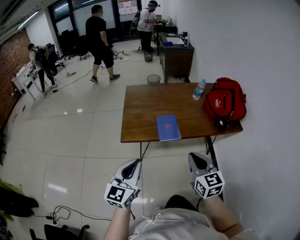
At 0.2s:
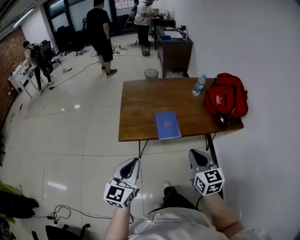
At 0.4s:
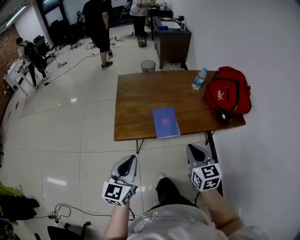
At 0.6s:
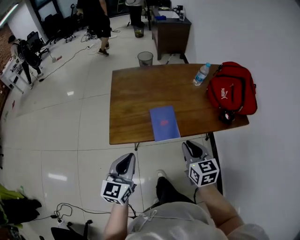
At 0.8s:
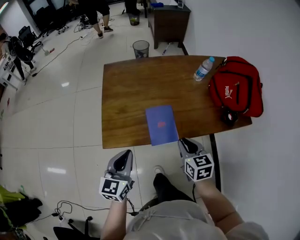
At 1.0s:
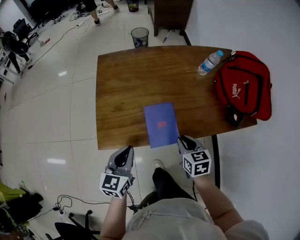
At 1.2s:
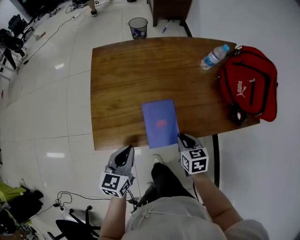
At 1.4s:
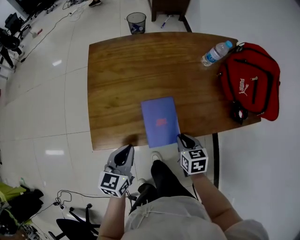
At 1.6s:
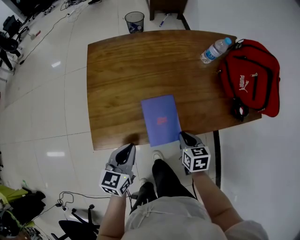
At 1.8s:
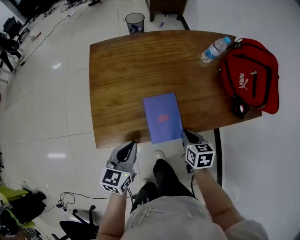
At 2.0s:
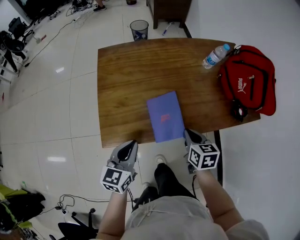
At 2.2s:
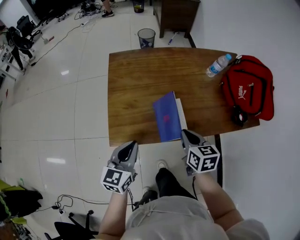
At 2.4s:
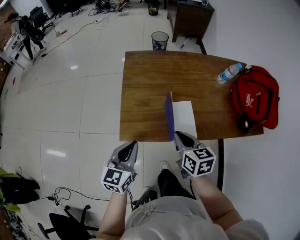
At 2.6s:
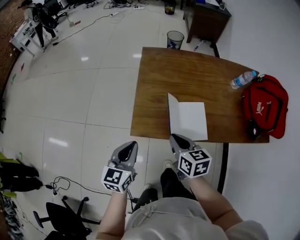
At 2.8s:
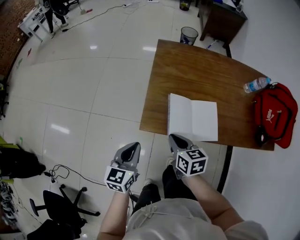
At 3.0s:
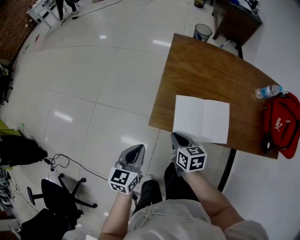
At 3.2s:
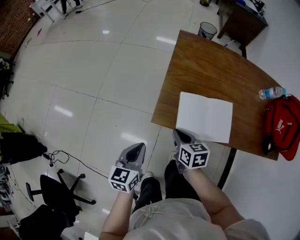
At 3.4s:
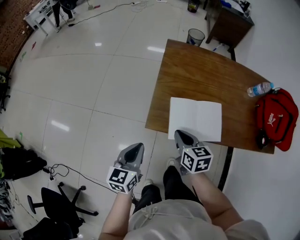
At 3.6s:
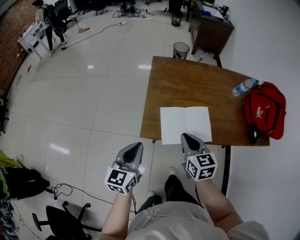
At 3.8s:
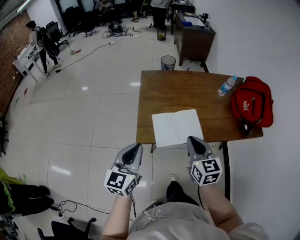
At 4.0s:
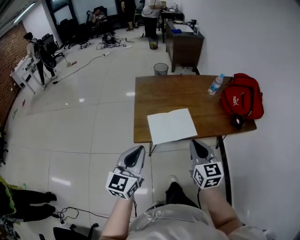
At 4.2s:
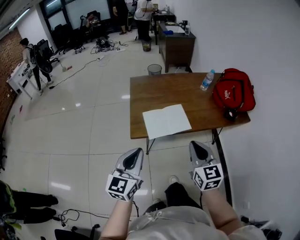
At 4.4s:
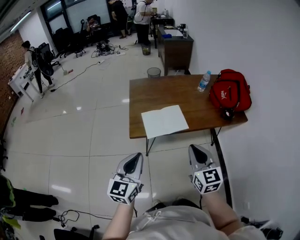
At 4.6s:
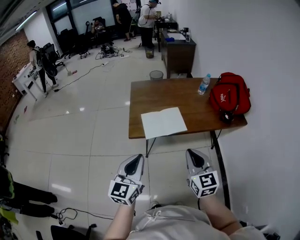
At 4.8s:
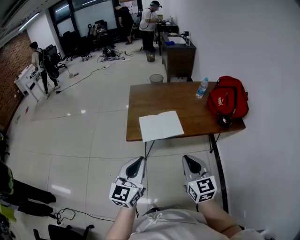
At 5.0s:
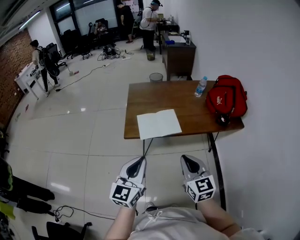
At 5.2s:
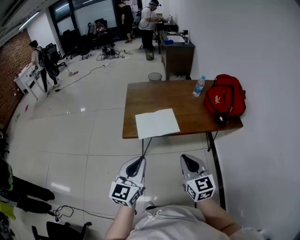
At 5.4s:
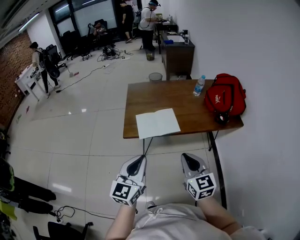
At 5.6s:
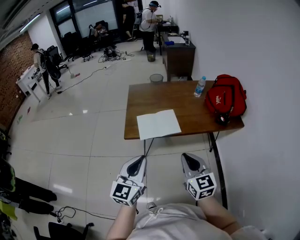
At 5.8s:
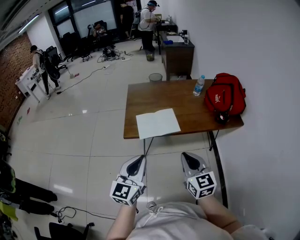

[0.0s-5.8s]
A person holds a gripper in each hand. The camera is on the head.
0.0s to 1.4s: The right gripper moves downward and forward, some 35 cm, and tips its fingers downward by roughly 30 degrees; the left gripper moves forward and downward, roughly 35 cm, and swivels about 30 degrees.
1.4s to 2.8s: The right gripper goes some 25 cm to the left, and swivels approximately 20 degrees. Meanwhile the left gripper shifts about 20 cm to the left and backward.
2.8s to 4.4s: The right gripper moves roughly 35 cm, and changes its angle by about 40 degrees. Meanwhile the left gripper travels upward by roughly 20 cm, and rotates roughly 30 degrees.
4.4s to 5.8s: The left gripper heads to the right, covering approximately 10 cm. Meanwhile the right gripper ends up roughly 5 cm from where it was.

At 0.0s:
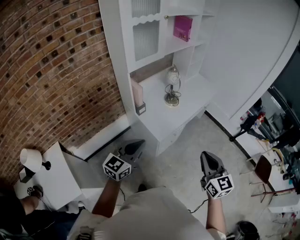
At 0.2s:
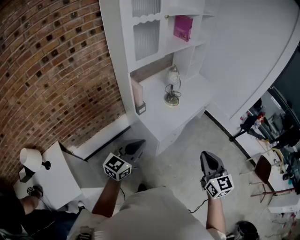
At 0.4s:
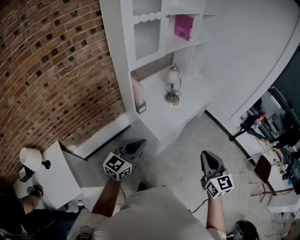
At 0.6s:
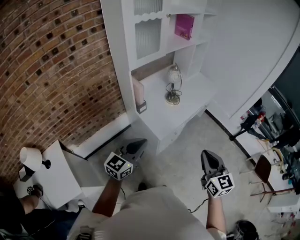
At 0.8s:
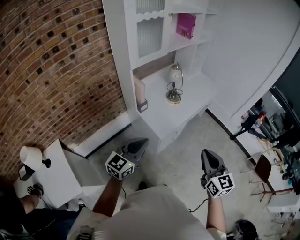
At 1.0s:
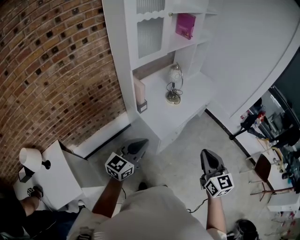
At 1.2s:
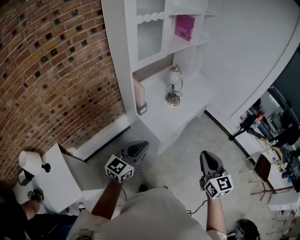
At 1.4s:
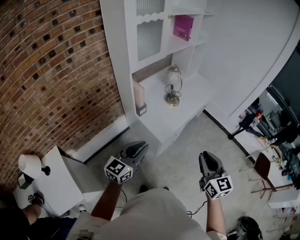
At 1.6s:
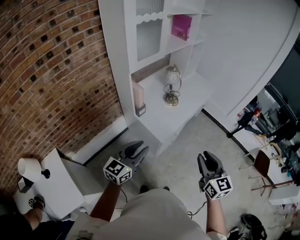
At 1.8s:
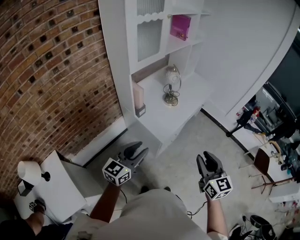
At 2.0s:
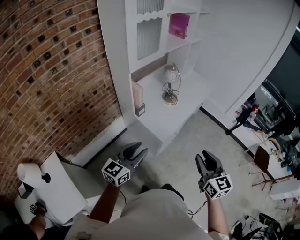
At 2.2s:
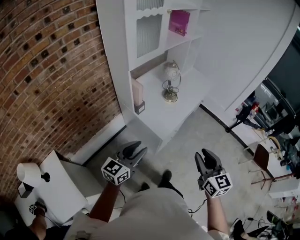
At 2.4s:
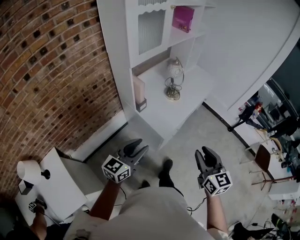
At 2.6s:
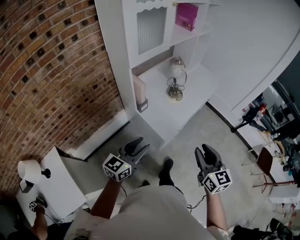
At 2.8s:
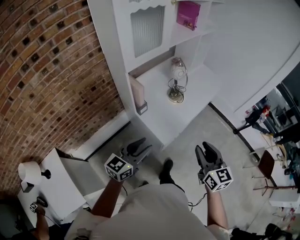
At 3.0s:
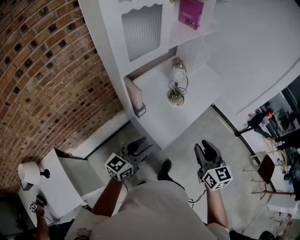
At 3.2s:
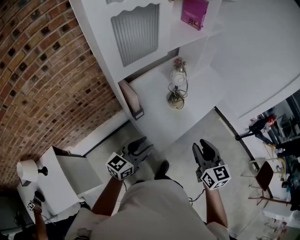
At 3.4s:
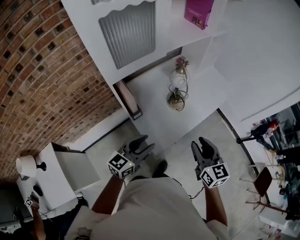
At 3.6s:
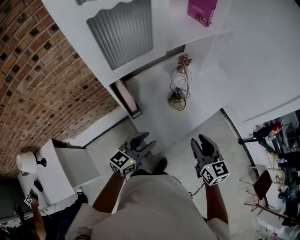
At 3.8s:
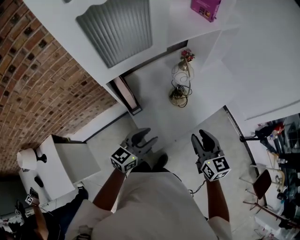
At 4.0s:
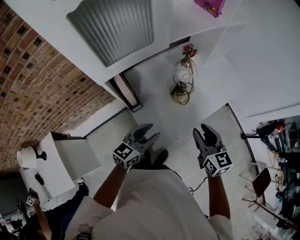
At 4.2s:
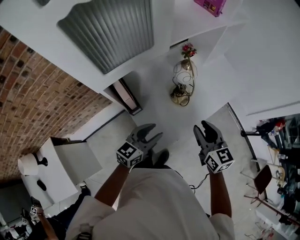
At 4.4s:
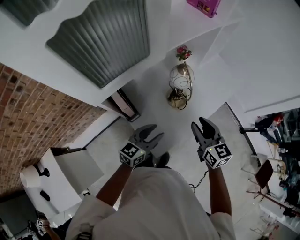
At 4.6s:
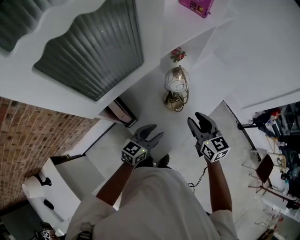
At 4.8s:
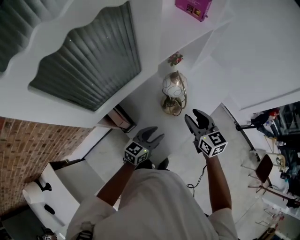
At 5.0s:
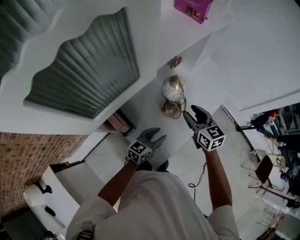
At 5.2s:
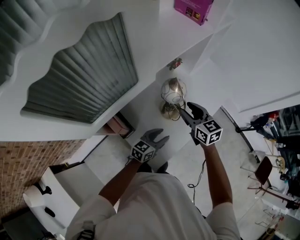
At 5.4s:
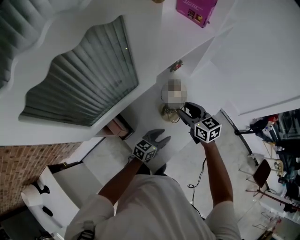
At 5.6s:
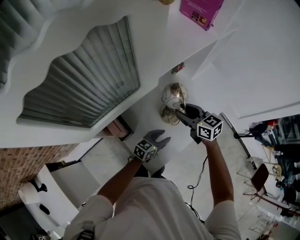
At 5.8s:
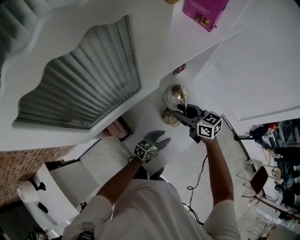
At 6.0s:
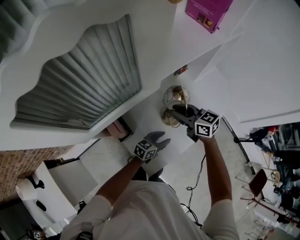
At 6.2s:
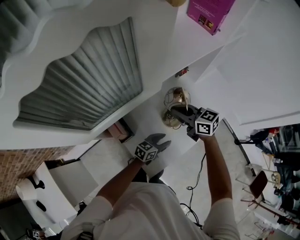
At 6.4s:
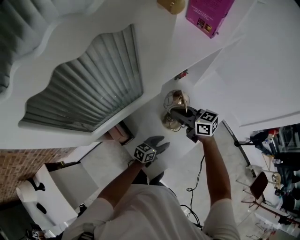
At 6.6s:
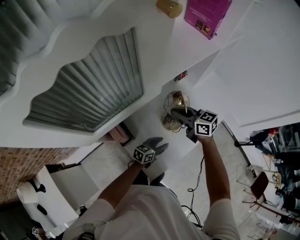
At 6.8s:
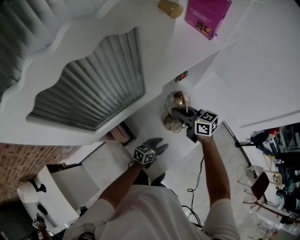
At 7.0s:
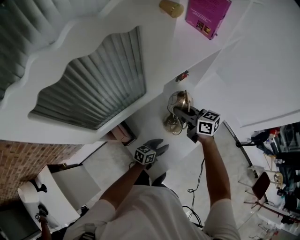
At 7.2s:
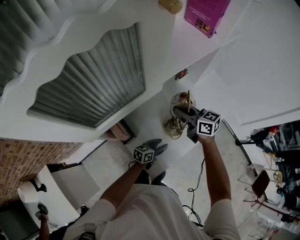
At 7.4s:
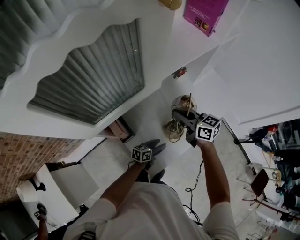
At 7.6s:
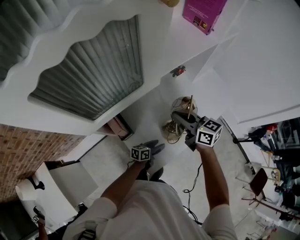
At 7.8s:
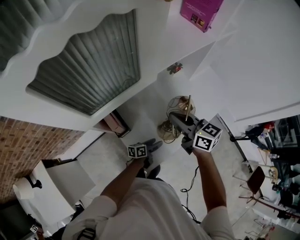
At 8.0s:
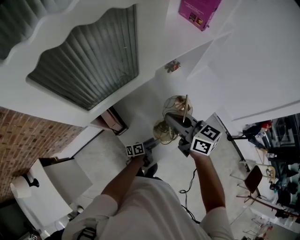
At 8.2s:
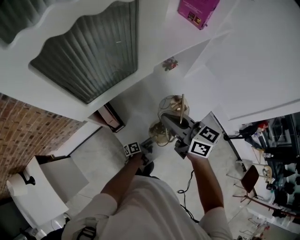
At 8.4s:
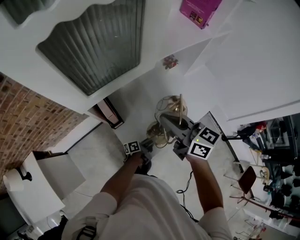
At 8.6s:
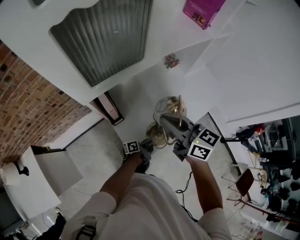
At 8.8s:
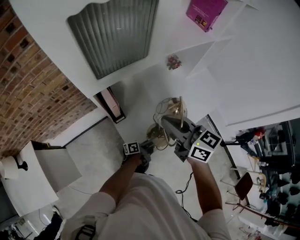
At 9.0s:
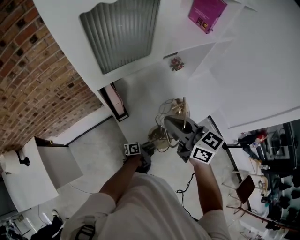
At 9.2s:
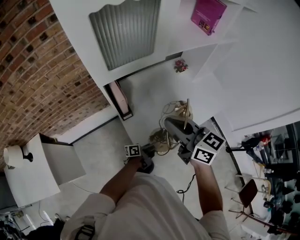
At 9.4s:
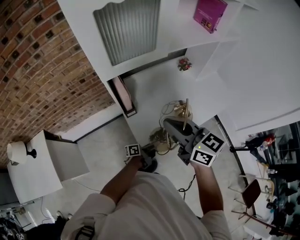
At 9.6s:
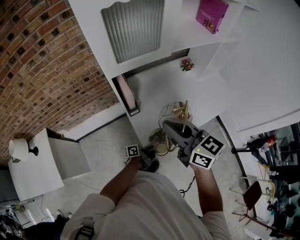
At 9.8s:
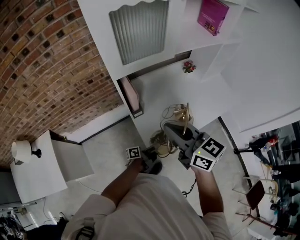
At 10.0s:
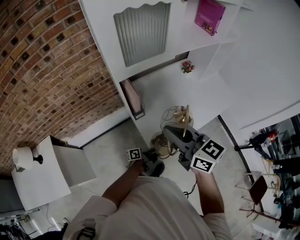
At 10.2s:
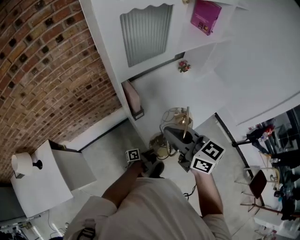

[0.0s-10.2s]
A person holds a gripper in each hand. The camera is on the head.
0.0s to 1.4s: There are only small adjustments of the grippers.
1.4s to 3.0s: The right gripper moves forward, about 20 cm. The left gripper goes roughly 15 cm forward and downward.
3.0s to 4.4s: The right gripper travels forward by some 25 cm; the left gripper shifts roughly 25 cm forward and downward.
4.4s to 5.8s: The right gripper shifts some 20 cm forward and to the left, and swivels roughly 30 degrees. Meanwhile the left gripper heads downward, forward and to the right, covering approximately 20 cm.
5.8s to 7.2s: The left gripper ends up roughly 5 cm from where it was. Meanwhile the right gripper closes up.
7.2s to 8.8s: The left gripper travels backward by some 10 cm, rolls counterclockwise, seen from behind, by some 40 degrees, and opens, then closes again; the right gripper is displaced backward and upward by about 25 cm.
8.8s to 10.2s: The left gripper is displaced backward, to the left and upward by approximately 15 cm; the right gripper goes approximately 15 cm backward and to the left.

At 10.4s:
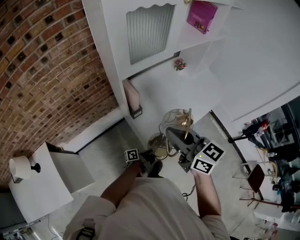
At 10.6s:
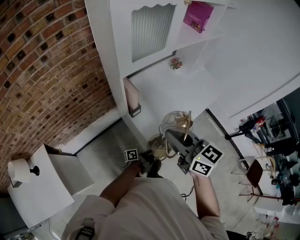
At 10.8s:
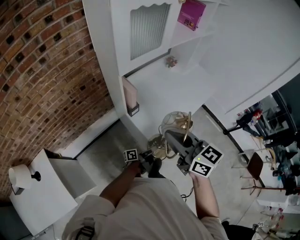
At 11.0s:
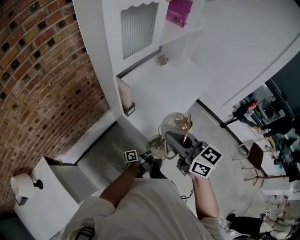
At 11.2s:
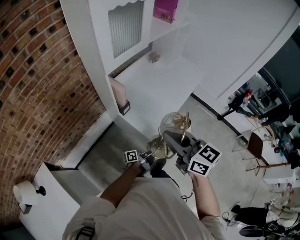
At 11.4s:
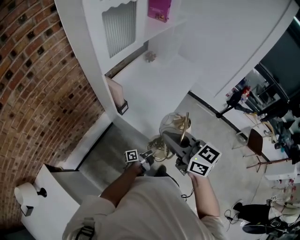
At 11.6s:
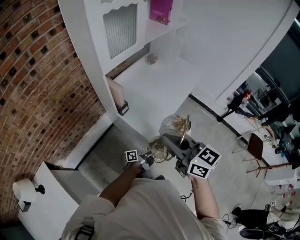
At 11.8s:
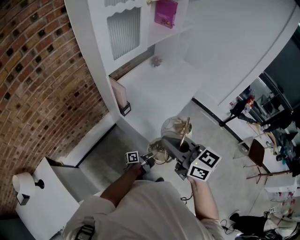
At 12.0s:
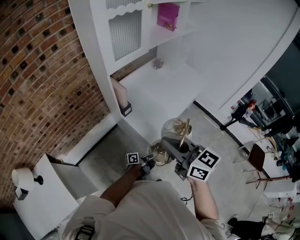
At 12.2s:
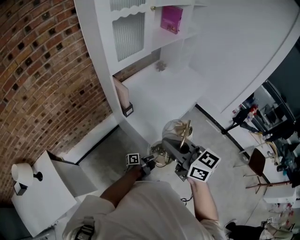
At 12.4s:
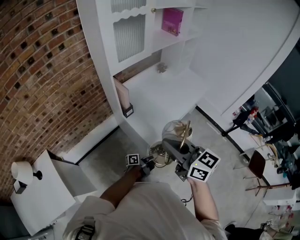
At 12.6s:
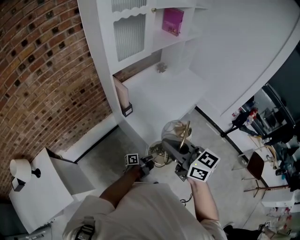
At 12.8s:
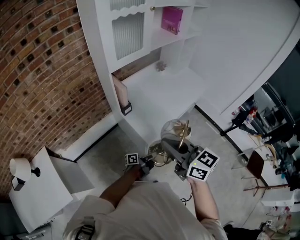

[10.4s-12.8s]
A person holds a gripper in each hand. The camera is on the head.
10.4s to 11.6s: The two grippers go roughly 15 cm backward.
11.6s to 12.8s: The right gripper moves some 5 cm.

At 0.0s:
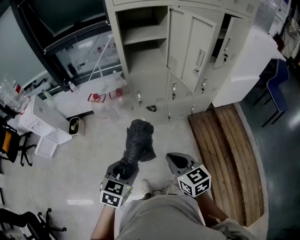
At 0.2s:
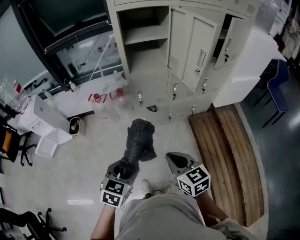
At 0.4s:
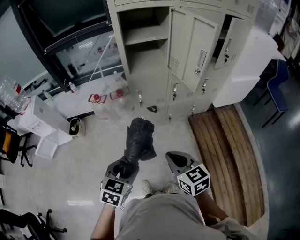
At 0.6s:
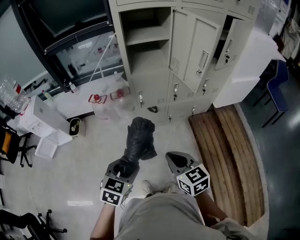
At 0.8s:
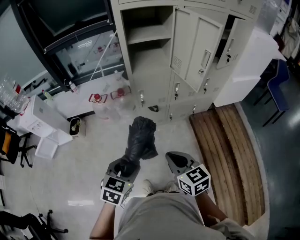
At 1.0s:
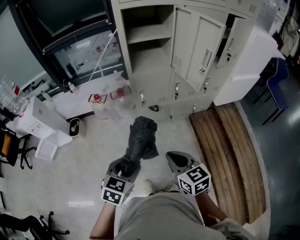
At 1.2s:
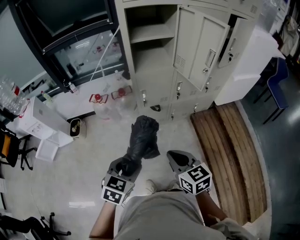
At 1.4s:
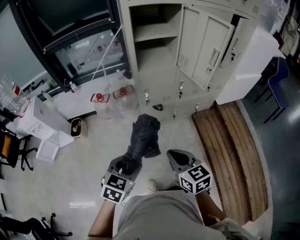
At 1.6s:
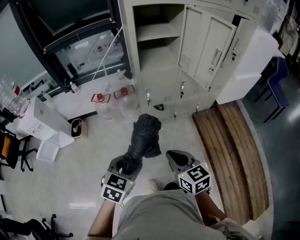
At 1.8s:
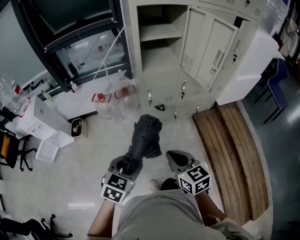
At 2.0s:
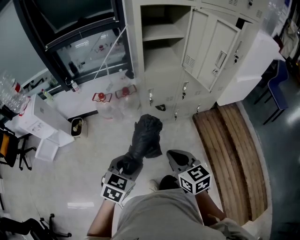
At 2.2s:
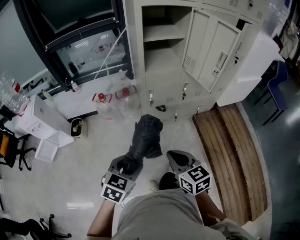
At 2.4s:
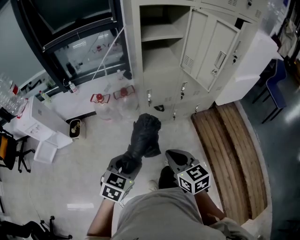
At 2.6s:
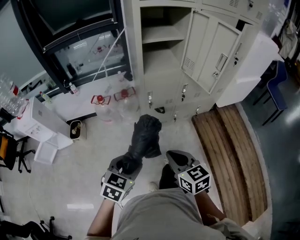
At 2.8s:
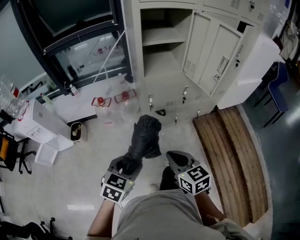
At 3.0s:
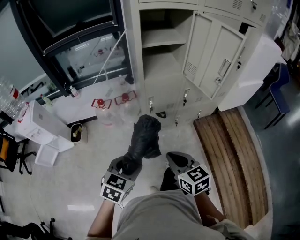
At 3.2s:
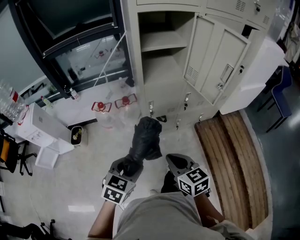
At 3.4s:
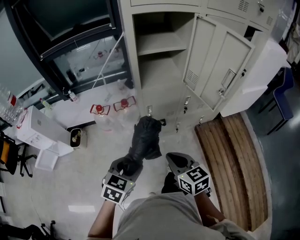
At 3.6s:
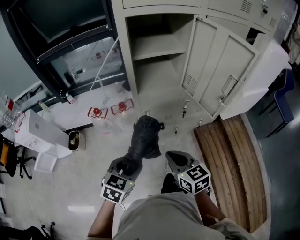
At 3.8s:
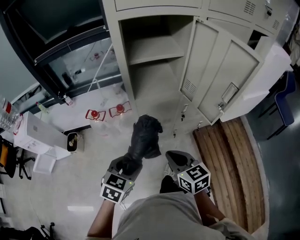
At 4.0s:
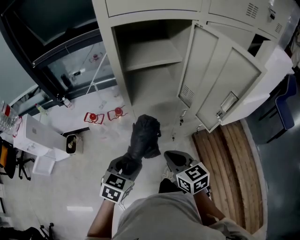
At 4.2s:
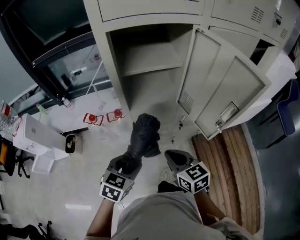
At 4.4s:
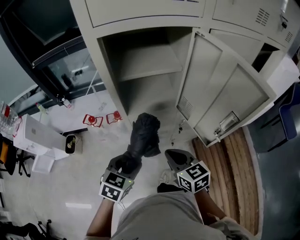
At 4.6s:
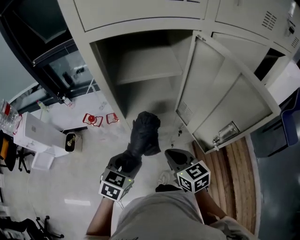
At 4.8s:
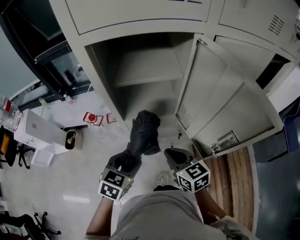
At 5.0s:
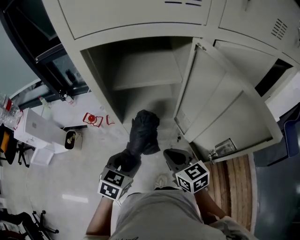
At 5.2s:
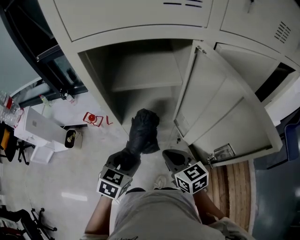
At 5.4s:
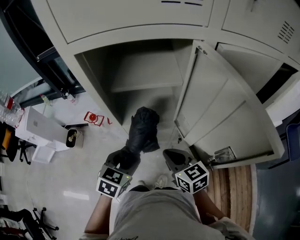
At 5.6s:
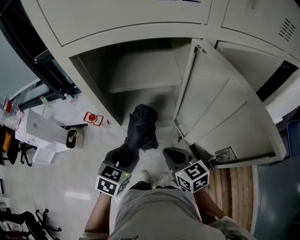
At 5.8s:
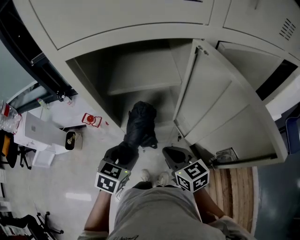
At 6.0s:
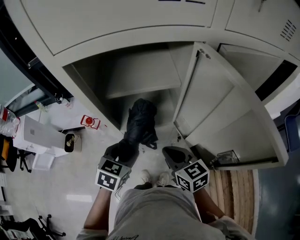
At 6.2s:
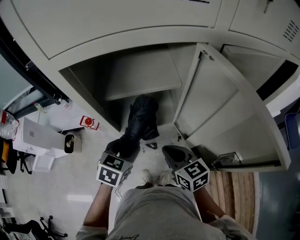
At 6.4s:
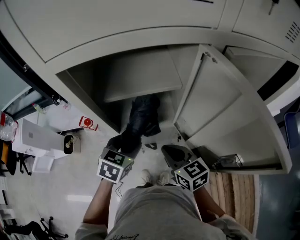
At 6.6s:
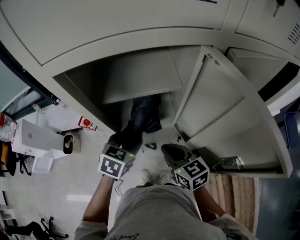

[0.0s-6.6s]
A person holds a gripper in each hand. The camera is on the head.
0.0s to 1.6s: Both grippers travel together to the left, about 10 cm.
1.6s to 3.2s: Both grippers travel together forward, approximately 10 cm.
3.2s to 5.0s: The grippers both shift forward and to the right by about 30 cm.
5.0s to 6.6s: The left gripper shifts roughly 15 cm forward, while the right gripper heads forward, covering about 5 cm.
